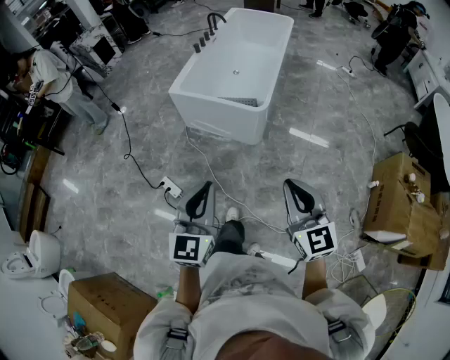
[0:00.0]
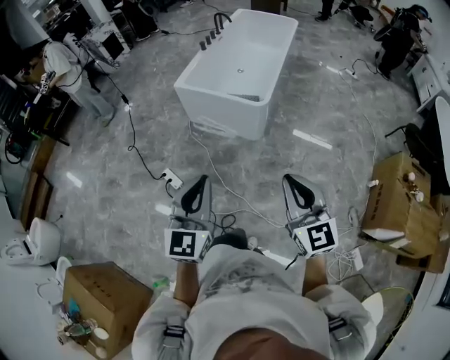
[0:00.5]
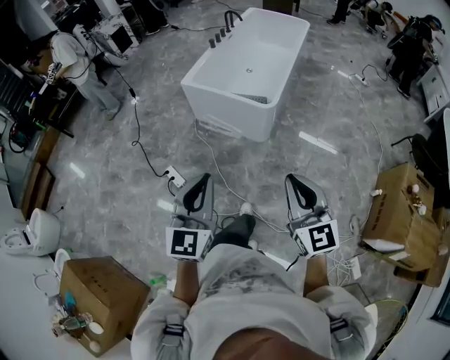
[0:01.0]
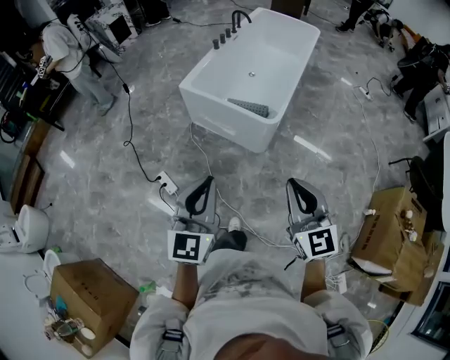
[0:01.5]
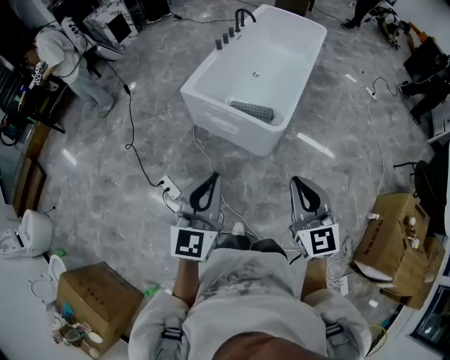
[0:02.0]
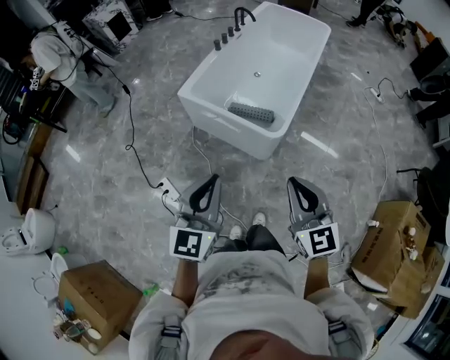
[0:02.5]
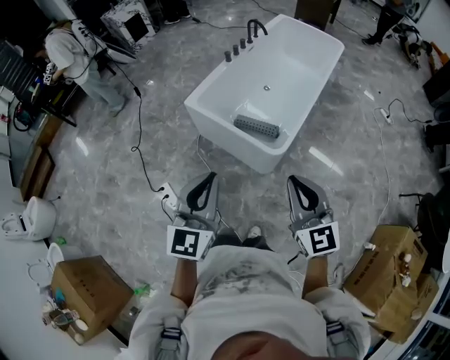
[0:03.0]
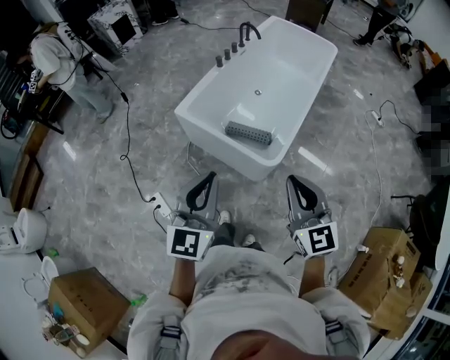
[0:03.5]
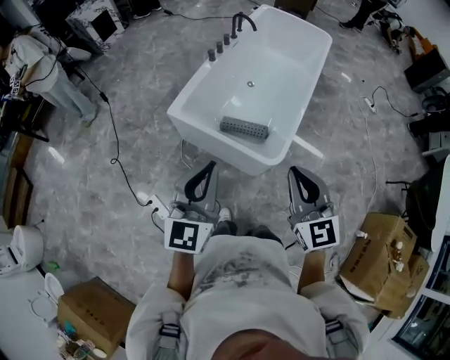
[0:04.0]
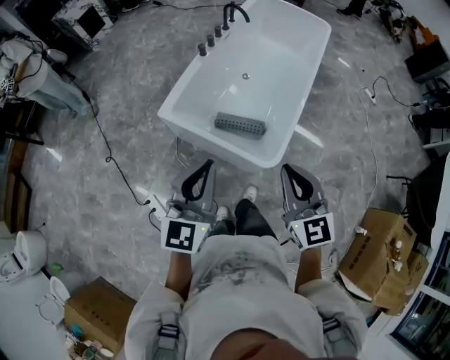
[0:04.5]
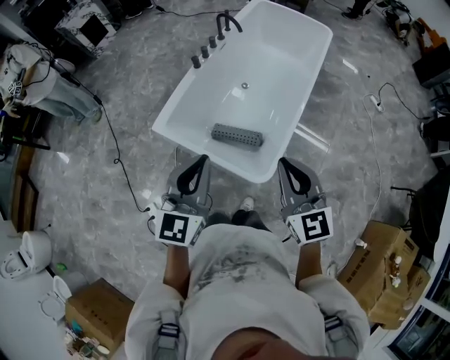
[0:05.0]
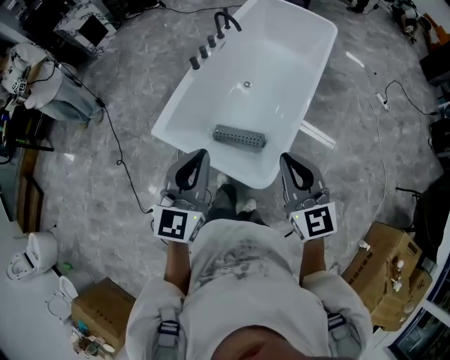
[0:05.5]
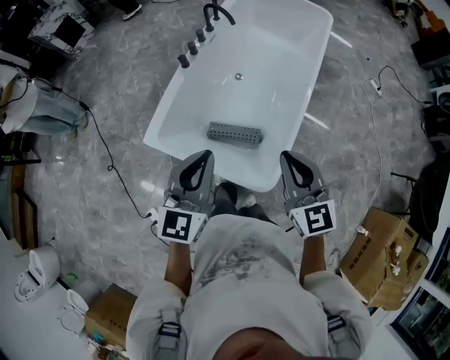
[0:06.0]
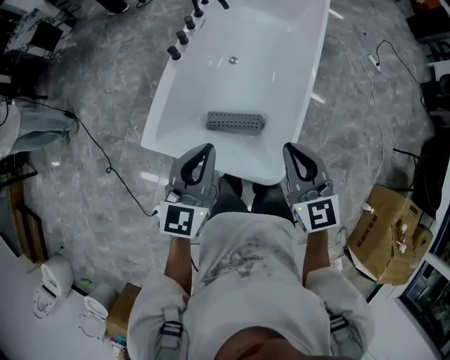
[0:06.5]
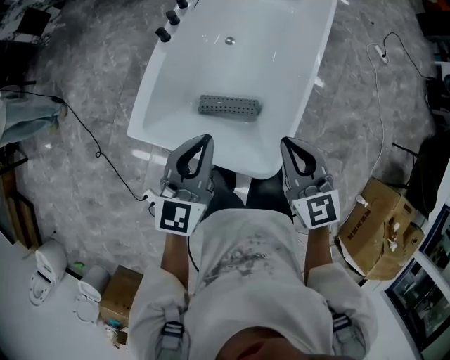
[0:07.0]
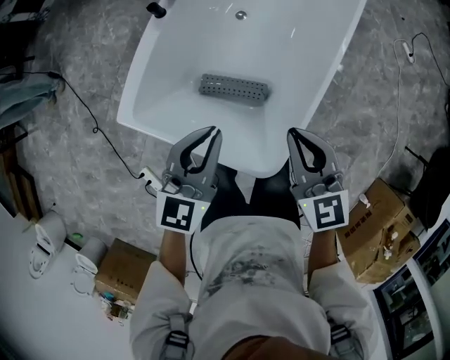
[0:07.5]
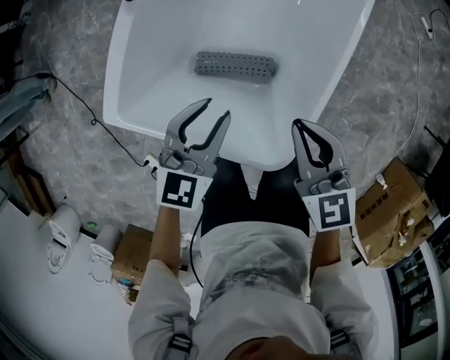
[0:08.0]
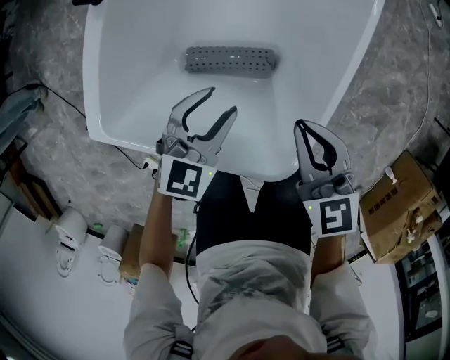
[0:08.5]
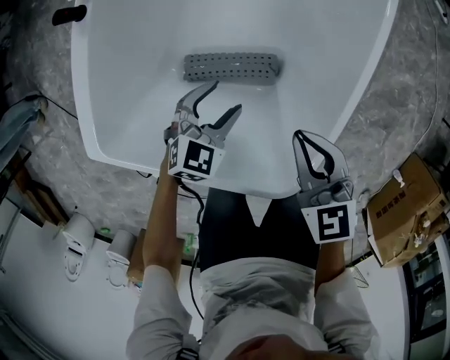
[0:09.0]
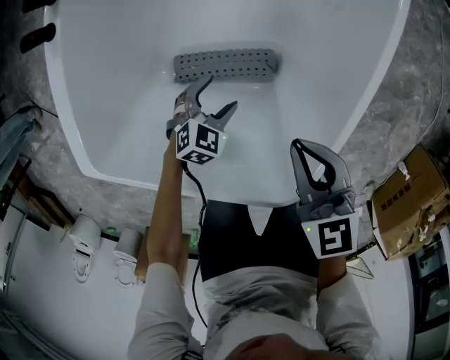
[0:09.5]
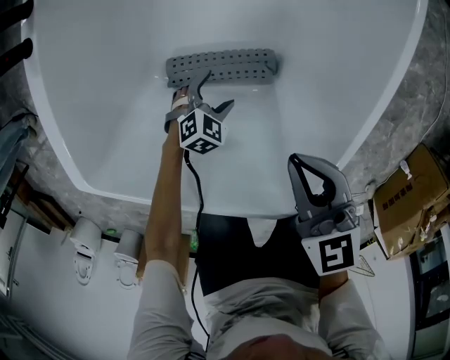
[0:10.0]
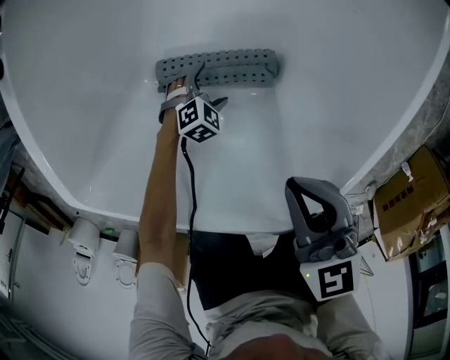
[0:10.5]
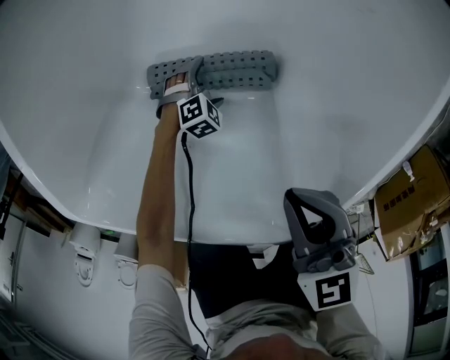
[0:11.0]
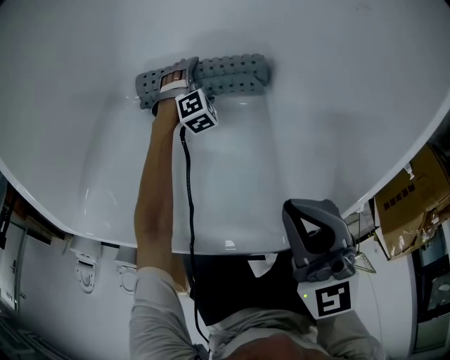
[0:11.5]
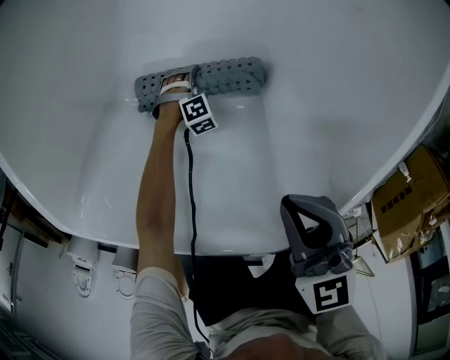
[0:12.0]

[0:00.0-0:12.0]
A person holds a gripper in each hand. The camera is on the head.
0:00.0 to 0:02.0: The grippers both shift forward by some 20 cm.
0:02.0 to 0:04.0: Both grippers travel together forward, approximately 25 cm.
0:04.0 to 0:06.0: Both grippers travel together forward, about 30 cm.
0:06.0 to 0:08.0: The two grippers go roughly 35 cm downward and forward. The left gripper turns by some 20 degrees.
0:08.0 to 0:10.0: The left gripper is displaced downward by roughly 50 cm, angles its fingers downward, by approximately 40 degrees, and opens its fingers, while the right gripper is displaced downward by roughly 20 cm.
0:10.0 to 0:12.0: The right gripper travels downward by roughly 5 cm. The left gripper is displaced downward by approximately 20 cm, and swivels approximately 30 degrees.

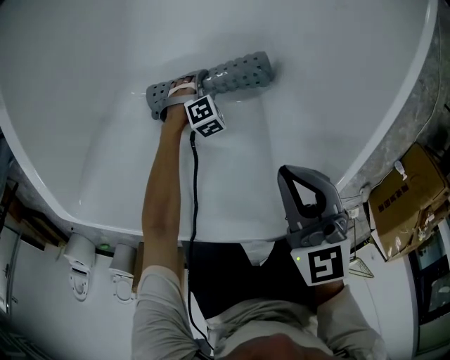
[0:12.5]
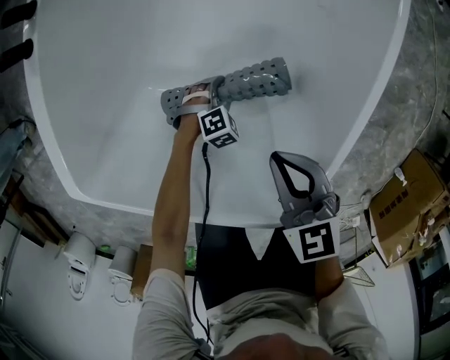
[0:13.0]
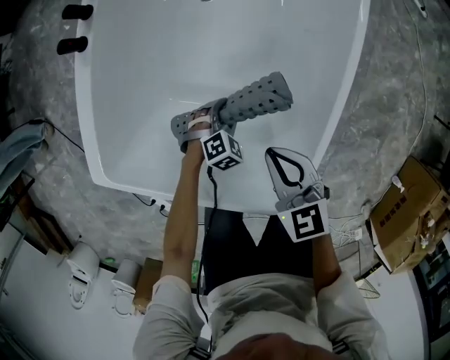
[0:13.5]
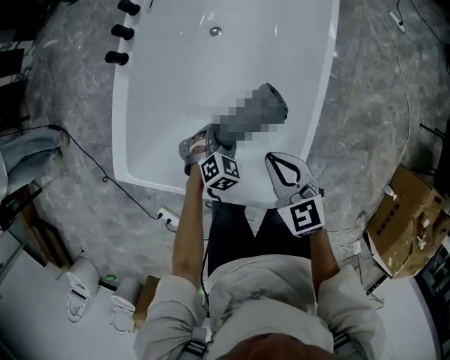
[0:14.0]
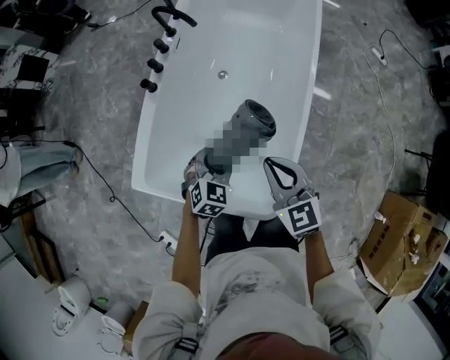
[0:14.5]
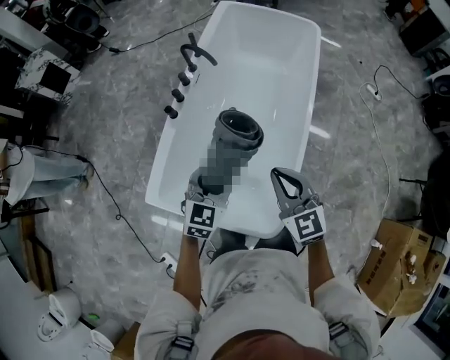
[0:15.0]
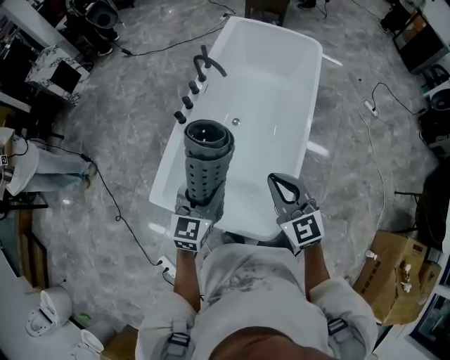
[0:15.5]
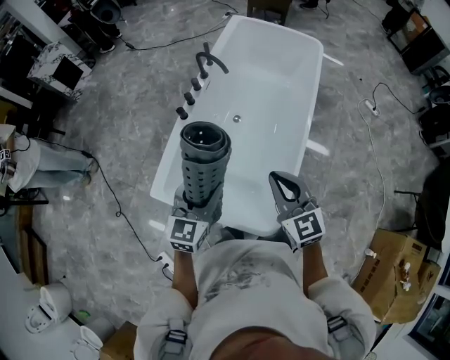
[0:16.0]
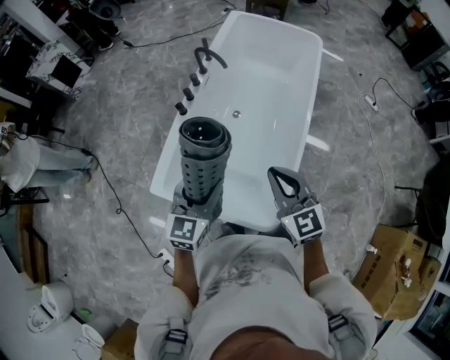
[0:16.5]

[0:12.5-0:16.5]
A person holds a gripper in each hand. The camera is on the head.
0:12.5 to 0:14.5: The right gripper shifts about 35 cm upward; the left gripper travels upward by some 60 cm, and tips its fingers upward by about 40 degrees.
0:14.5 to 0:16.5: The right gripper shifts about 20 cm upward. Meanwhile the left gripper moves upward, some 25 cm, and rotates roughly 30 degrees.

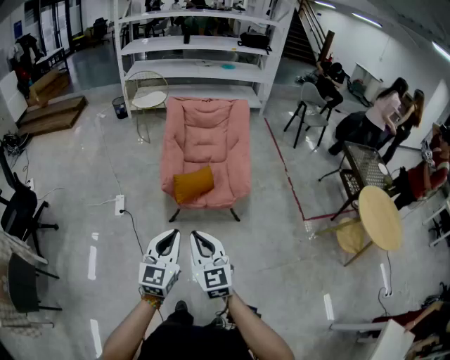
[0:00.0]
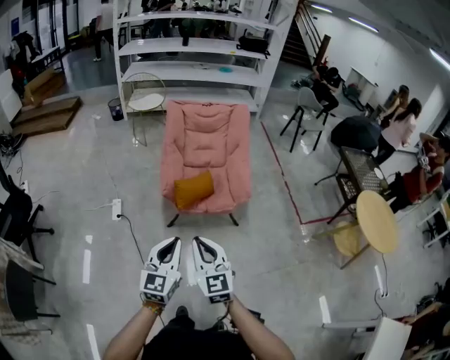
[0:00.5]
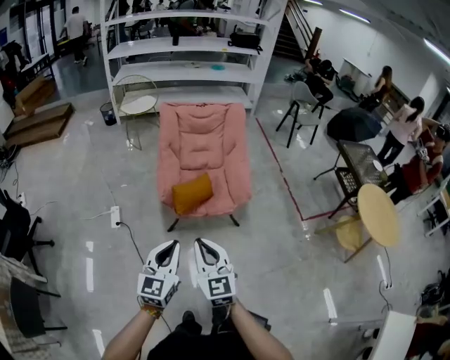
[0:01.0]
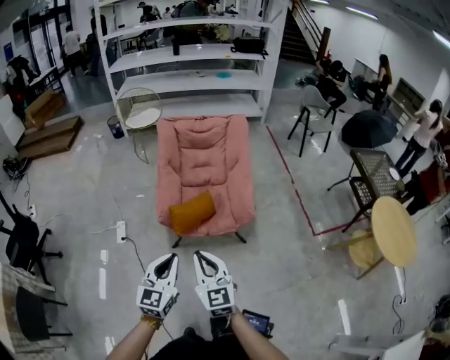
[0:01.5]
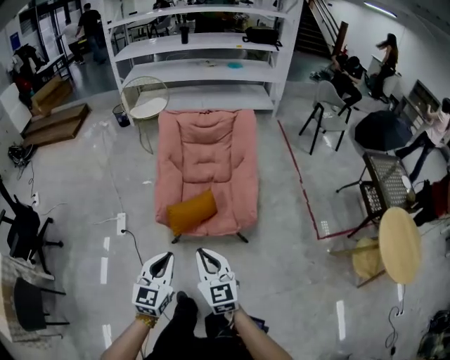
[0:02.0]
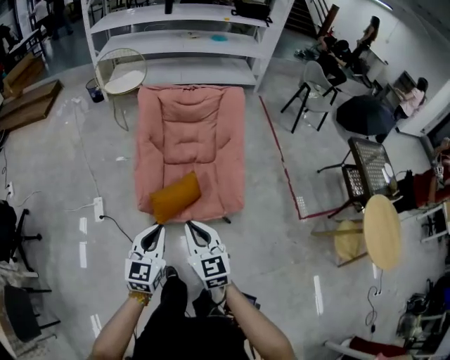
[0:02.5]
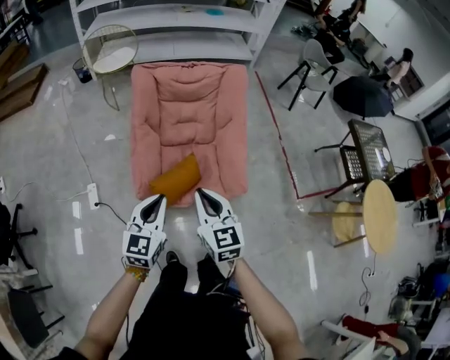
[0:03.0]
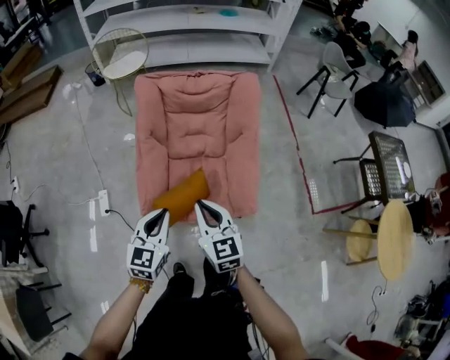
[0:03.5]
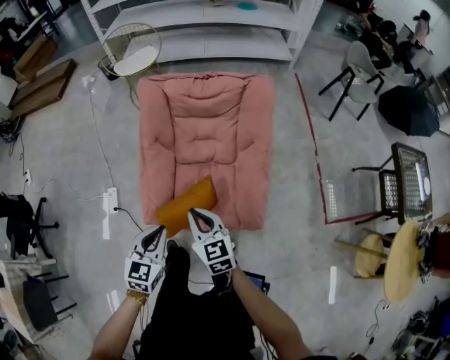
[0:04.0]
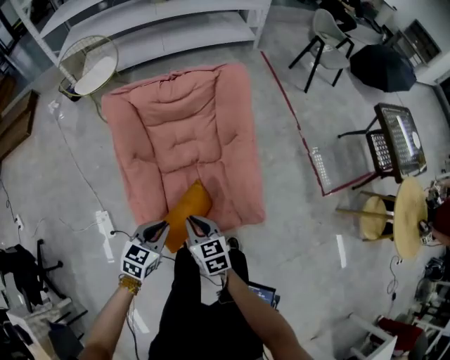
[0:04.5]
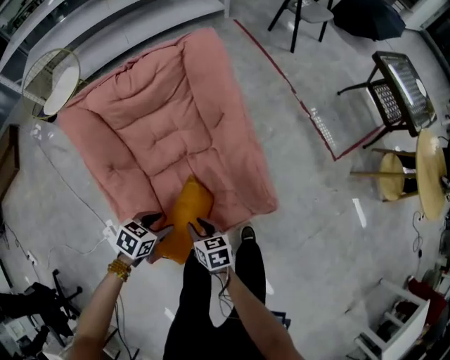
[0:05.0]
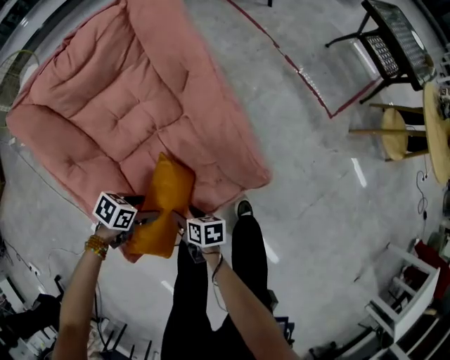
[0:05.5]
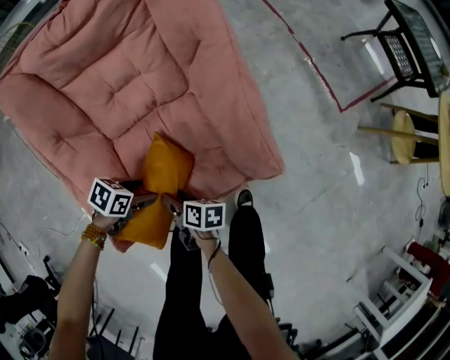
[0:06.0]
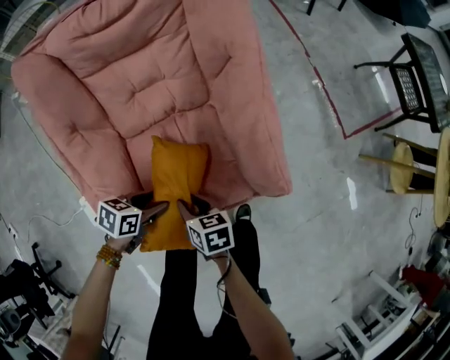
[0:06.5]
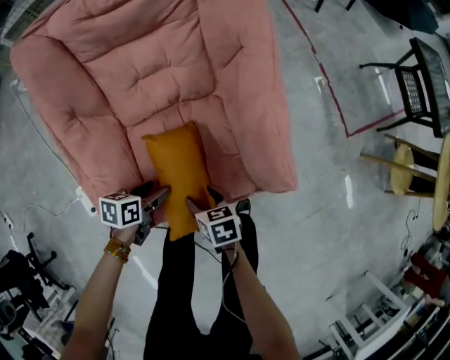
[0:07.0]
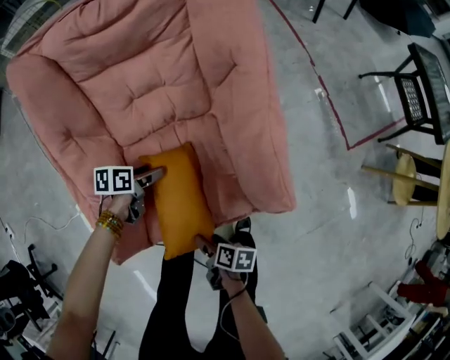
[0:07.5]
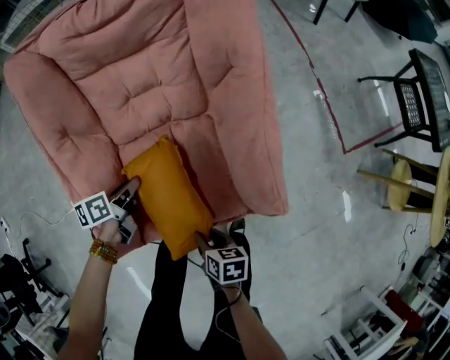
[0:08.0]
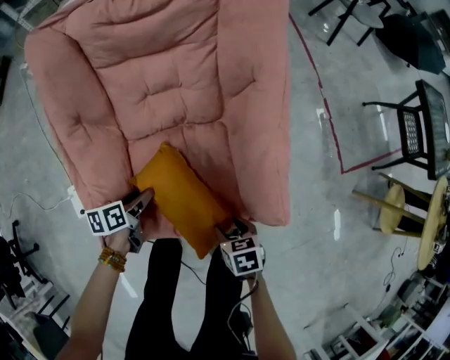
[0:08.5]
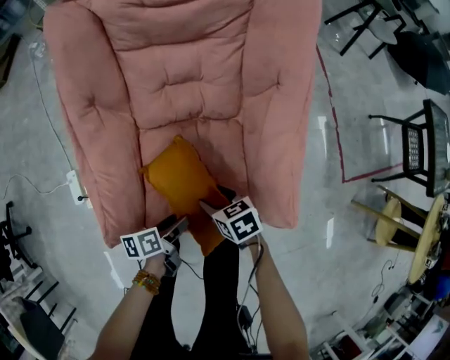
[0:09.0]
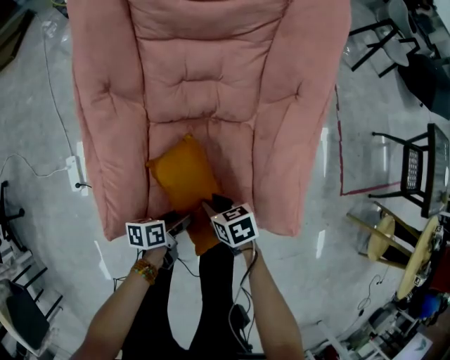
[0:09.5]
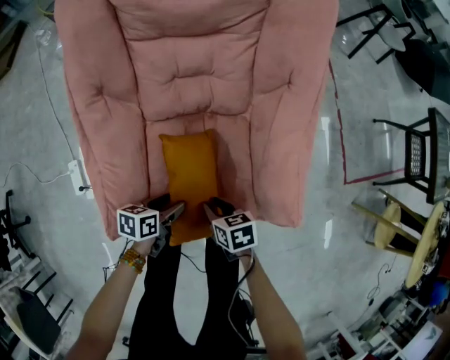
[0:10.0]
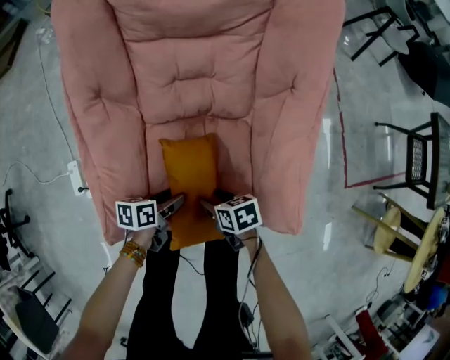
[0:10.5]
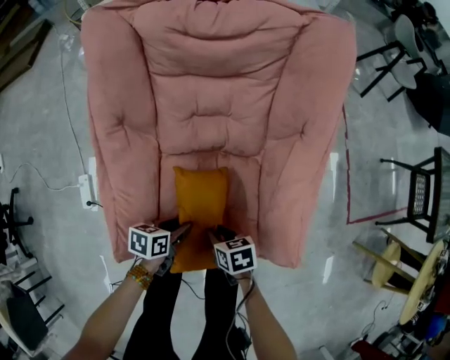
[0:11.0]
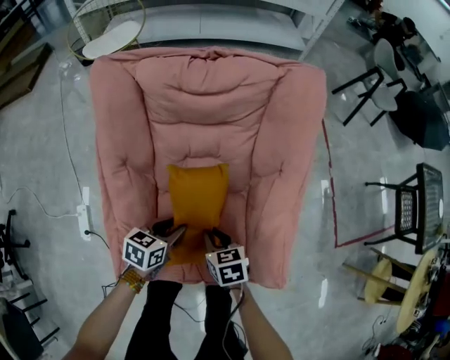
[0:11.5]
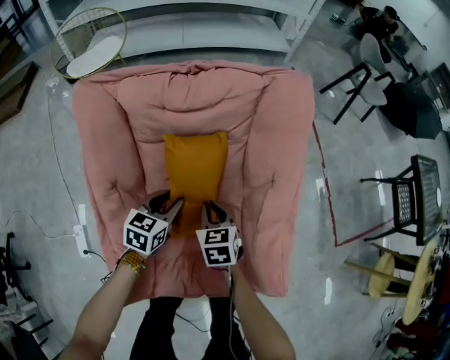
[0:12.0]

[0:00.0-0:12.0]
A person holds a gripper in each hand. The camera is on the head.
0:00.0 to 0:02.0: The grippers both shift forward by about 20 cm.
0:02.0 to 0:04.0: The two grippers go about 35 cm forward.
0:04.0 to 0:06.0: Both grippers travel together downward, approximately 50 cm. The right gripper twists roughly 70 degrees clockwise, seen from behind, and opens; the left gripper changes its angle by roughly 70 degrees, and opens up.
0:06.0 to 0:08.0: The right gripper goes up and down, some 10 cm each way, reversing 2 times, swivels roughly 30 degrees, and closes up. The left gripper swings up and down, about 5 cm each way, with 2 reversals, turns by some 60 degrees, and closes its fingers.
0:08.0 to 0:10.0: The left gripper moves backward, approximately 10 cm, and opens. Meanwhile the right gripper travels forward by some 10 cm, swivels approximately 30 degrees, and opens, then closes again.
0:10.0 to 0:12.0: The right gripper ends up approximately 30 cm from where it was, rotates about 30 degrees, and opens, then closes once more; the left gripper ends up some 30 cm from where it was, changes its angle by some 40 degrees, and closes.
